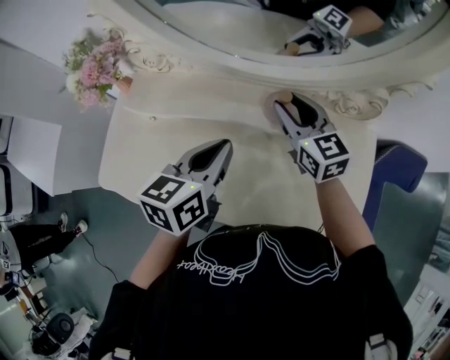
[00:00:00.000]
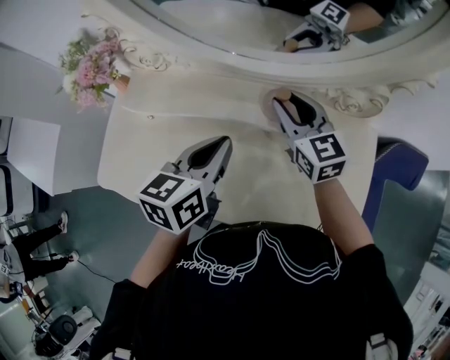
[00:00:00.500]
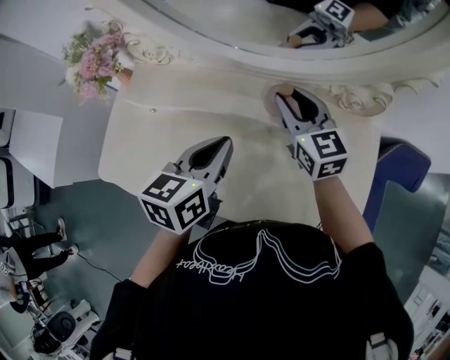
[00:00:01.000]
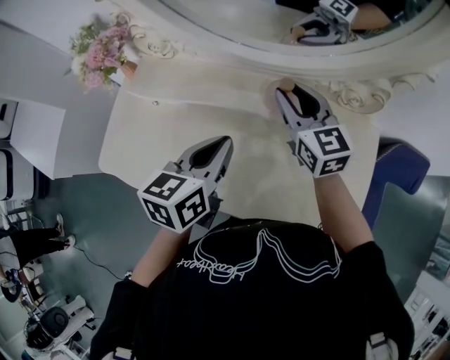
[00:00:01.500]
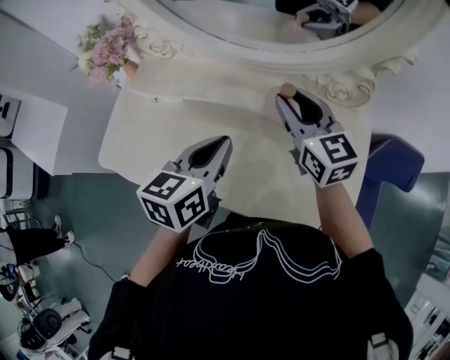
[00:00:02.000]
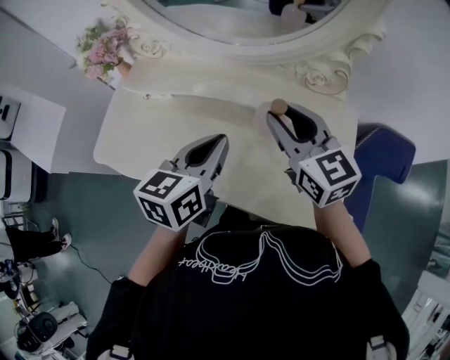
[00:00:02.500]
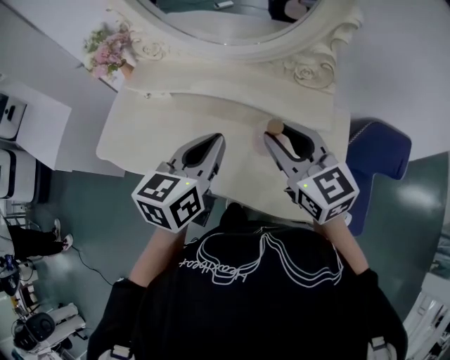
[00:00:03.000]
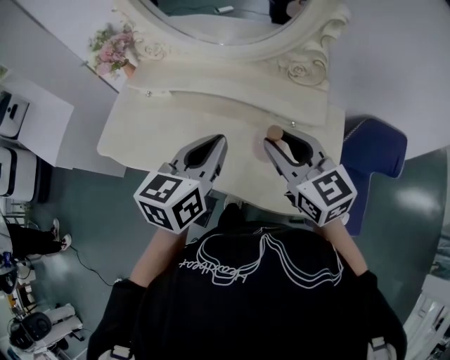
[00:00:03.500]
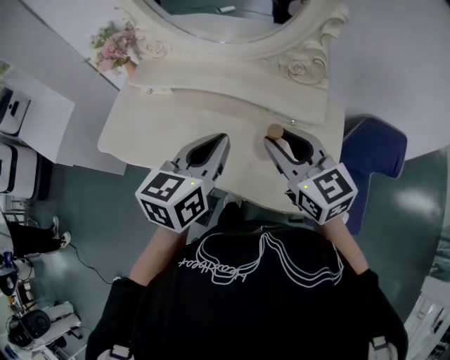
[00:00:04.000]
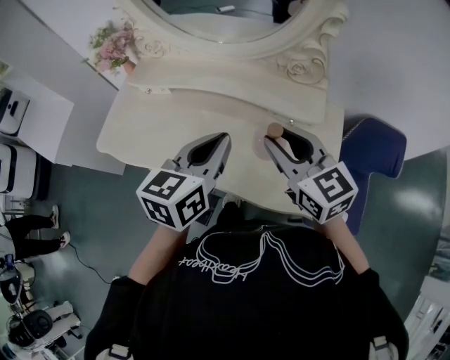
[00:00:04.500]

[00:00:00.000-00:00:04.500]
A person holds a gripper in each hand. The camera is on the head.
00:00:00.000 to 00:00:02.000: The left gripper shifts about 5 cm backward. The right gripper is displaced backward and upward by roughly 10 cm.
00:00:02.000 to 00:00:04.500: The right gripper heads backward, covering some 20 cm; the left gripper shifts about 15 cm backward, to the right and upward.

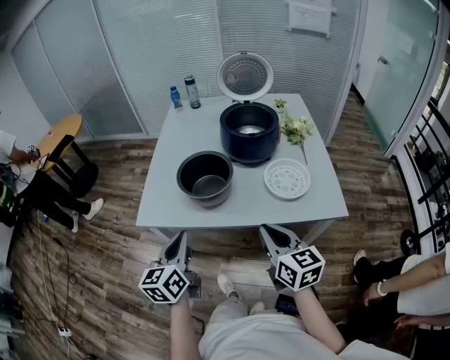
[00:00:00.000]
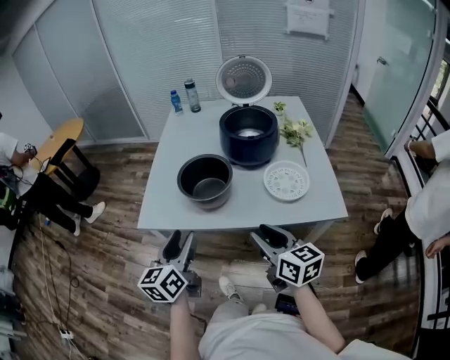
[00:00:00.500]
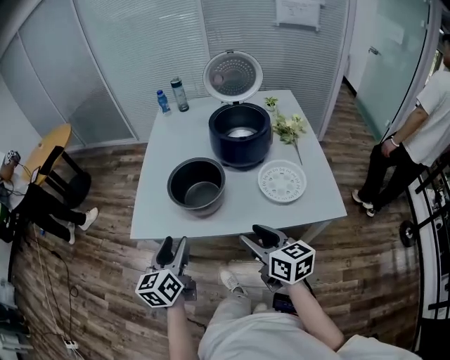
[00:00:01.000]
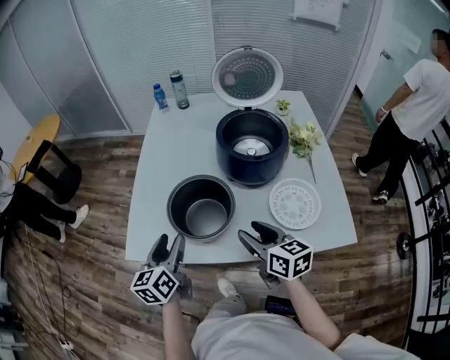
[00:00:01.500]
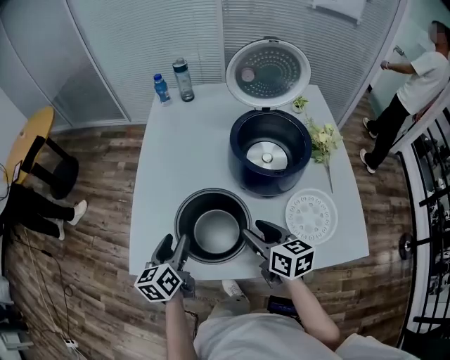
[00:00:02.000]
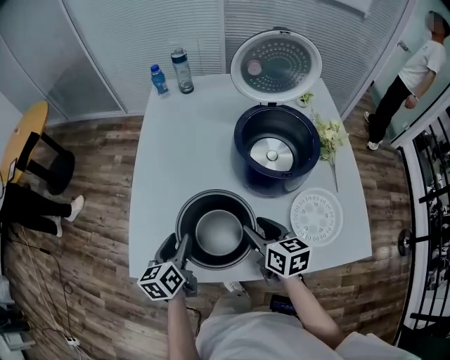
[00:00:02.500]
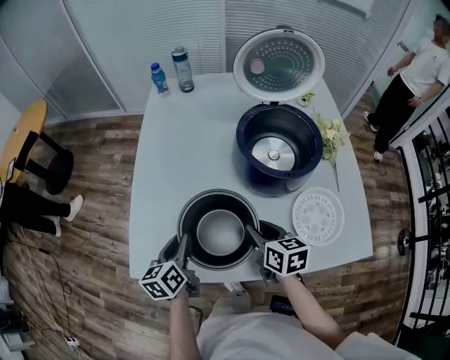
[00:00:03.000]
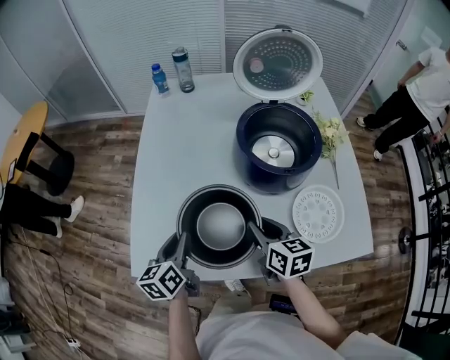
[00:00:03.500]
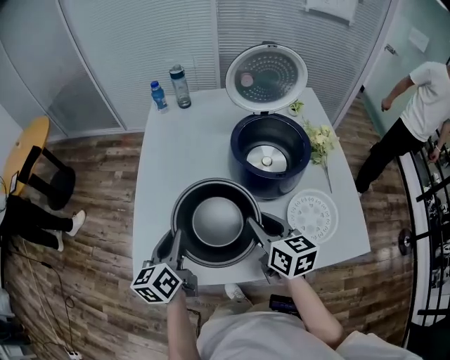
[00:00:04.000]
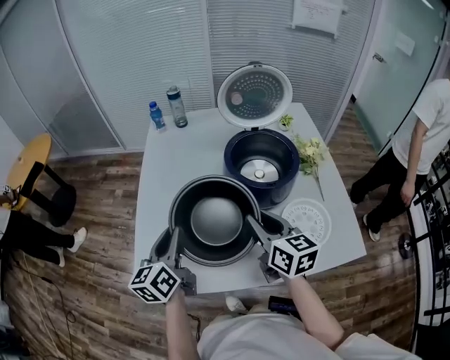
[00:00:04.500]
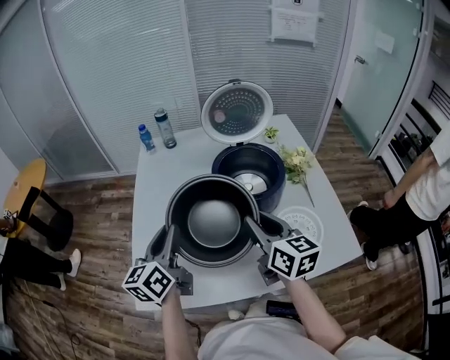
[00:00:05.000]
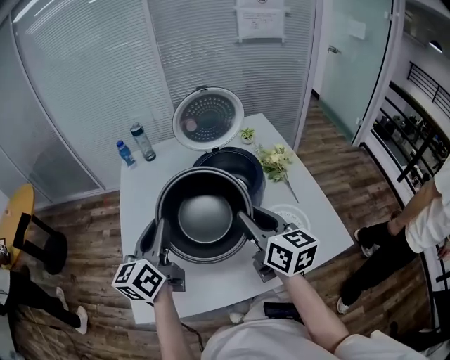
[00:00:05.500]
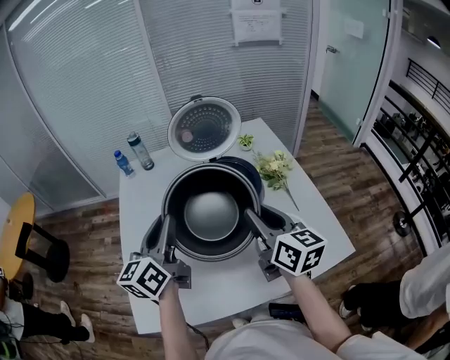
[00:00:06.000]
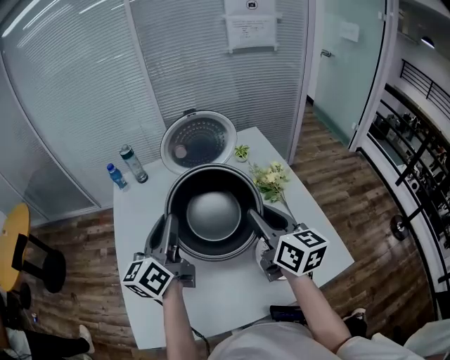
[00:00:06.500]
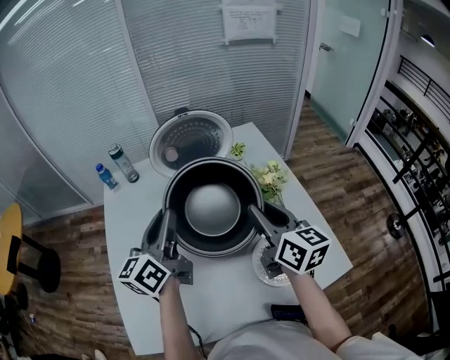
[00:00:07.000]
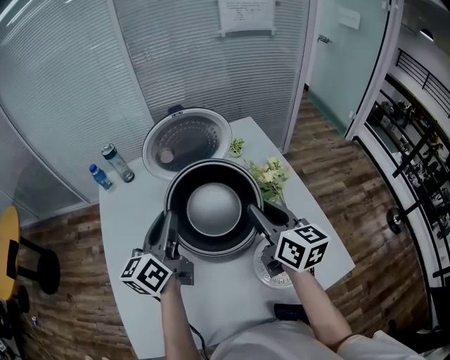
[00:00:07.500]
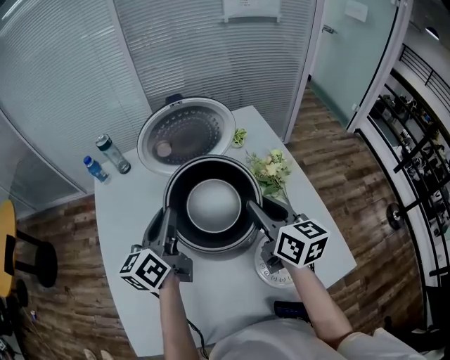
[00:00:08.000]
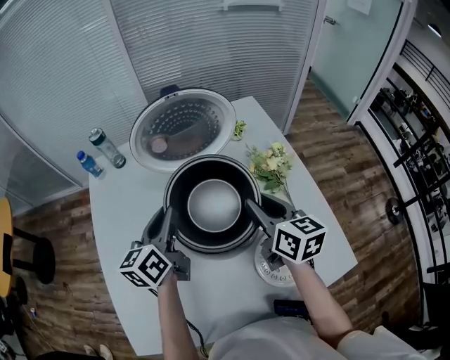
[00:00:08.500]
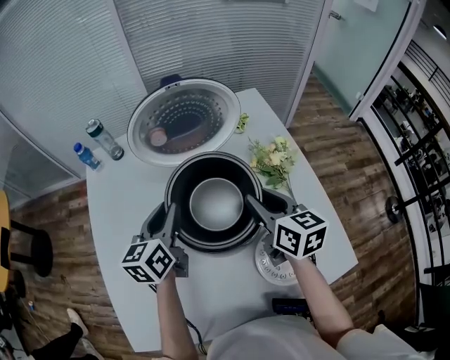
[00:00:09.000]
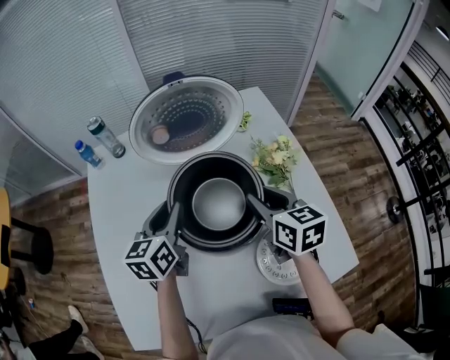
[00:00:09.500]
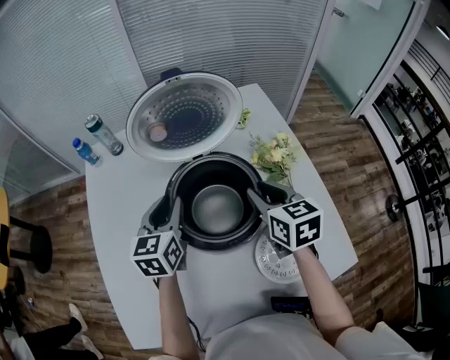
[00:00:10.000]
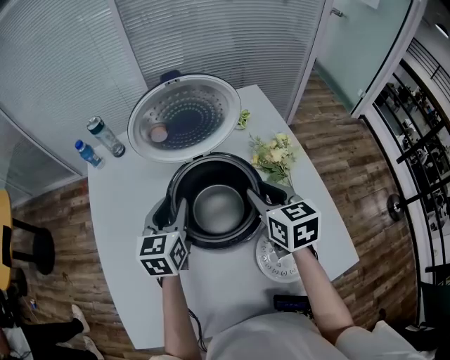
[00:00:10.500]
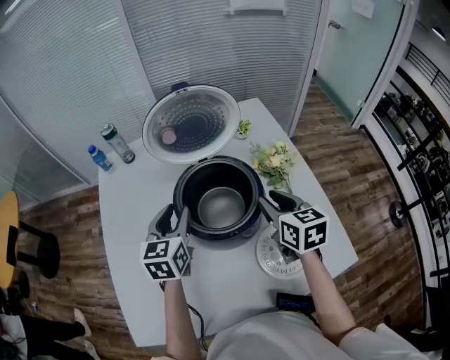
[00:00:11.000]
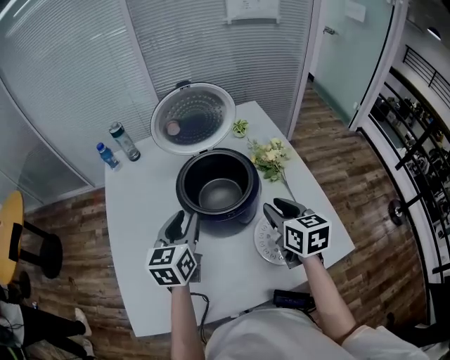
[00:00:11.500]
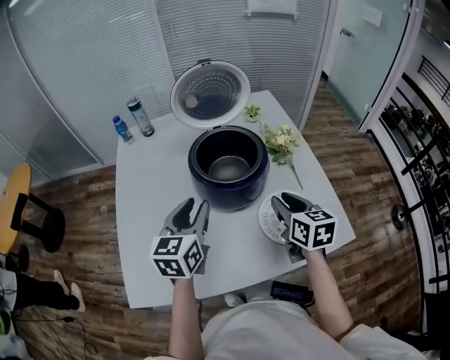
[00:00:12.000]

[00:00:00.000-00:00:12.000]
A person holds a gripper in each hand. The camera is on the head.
00:00:00.000 to 00:00:02.000: Both grippers move forward, approximately 30 cm. The right gripper opens its fingers. Meanwhile the left gripper opens its fingers.
00:00:02.000 to 00:00:04.000: The right gripper changes place by about 5 cm, and closes up, while the left gripper heads upward, covering some 5 cm, and closes up.
00:00:04.000 to 00:00:06.000: The left gripper is displaced upward, to the right and forward by roughly 25 cm, and turns by about 30 degrees, while the right gripper goes roughly 20 cm upward and to the right, and turns by about 20 degrees.
00:00:06.000 to 00:00:08.000: The right gripper shifts approximately 15 cm forward; the left gripper heads forward and downward, covering roughly 20 cm.
00:00:08.000 to 00:00:10.000: The two grippers go about 5 cm downward. The left gripper changes its angle by roughly 30 degrees, while the right gripper changes its angle by roughly 20 degrees.
00:00:10.000 to 00:00:12.000: The grippers both shift backward by roughly 20 cm.

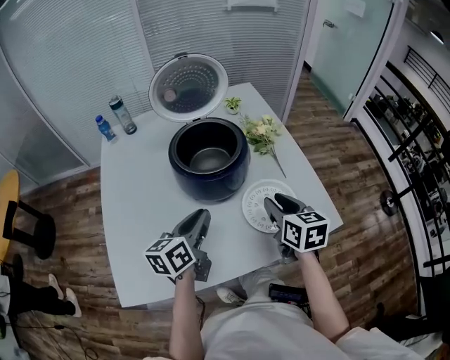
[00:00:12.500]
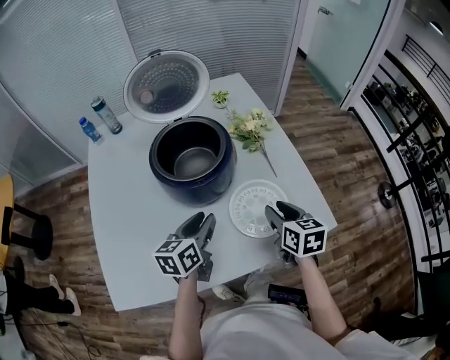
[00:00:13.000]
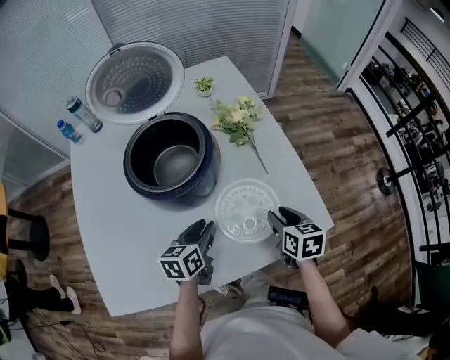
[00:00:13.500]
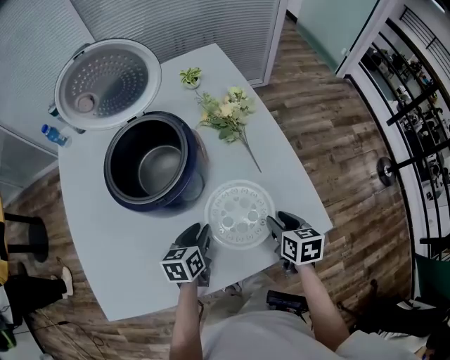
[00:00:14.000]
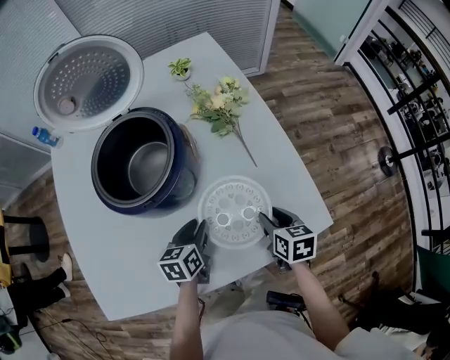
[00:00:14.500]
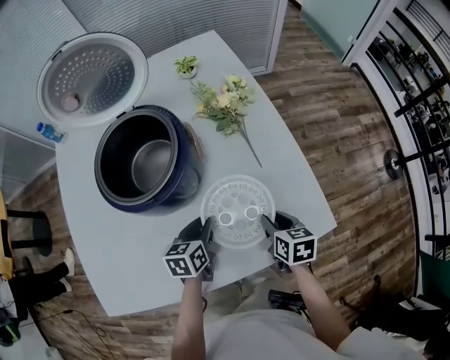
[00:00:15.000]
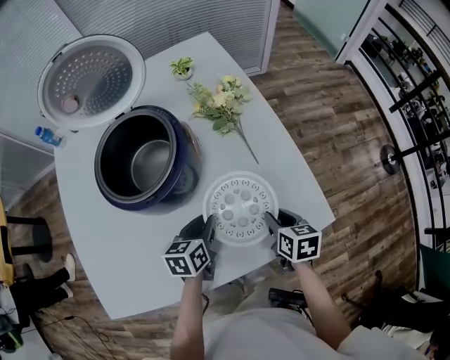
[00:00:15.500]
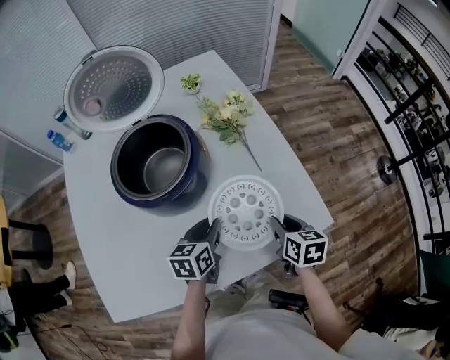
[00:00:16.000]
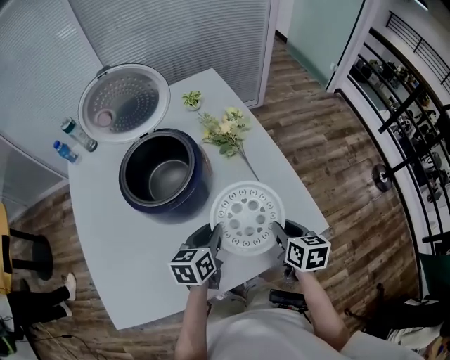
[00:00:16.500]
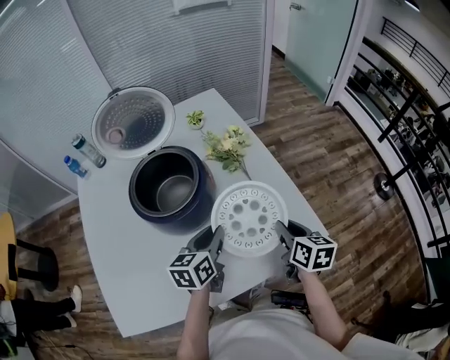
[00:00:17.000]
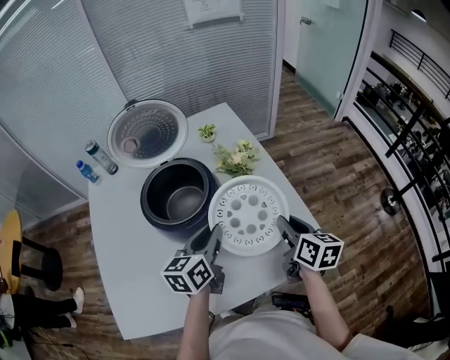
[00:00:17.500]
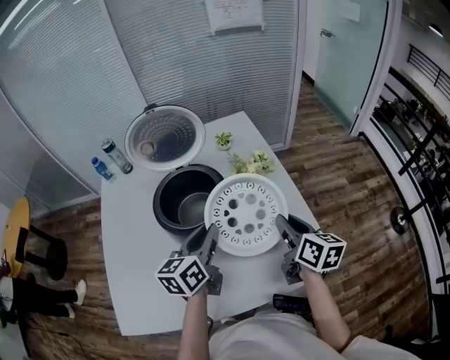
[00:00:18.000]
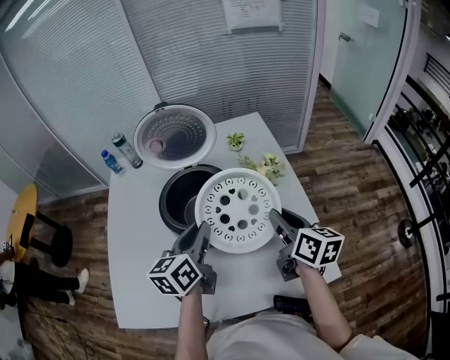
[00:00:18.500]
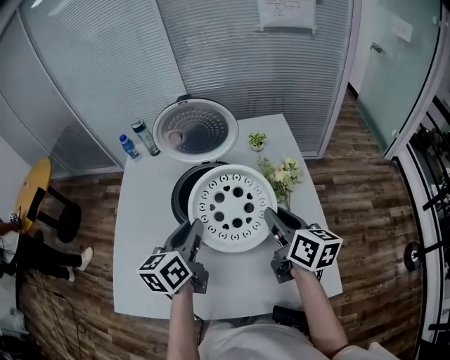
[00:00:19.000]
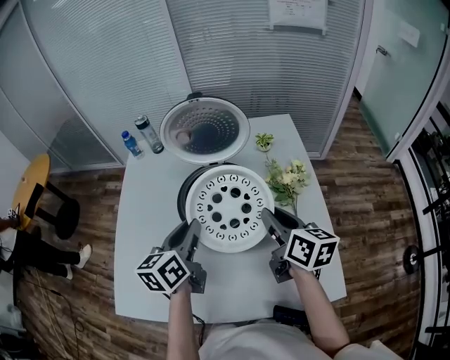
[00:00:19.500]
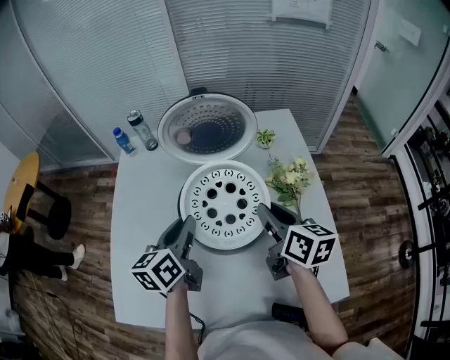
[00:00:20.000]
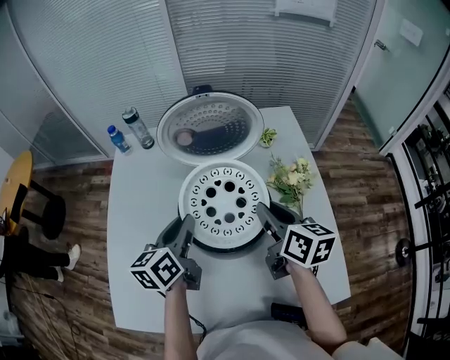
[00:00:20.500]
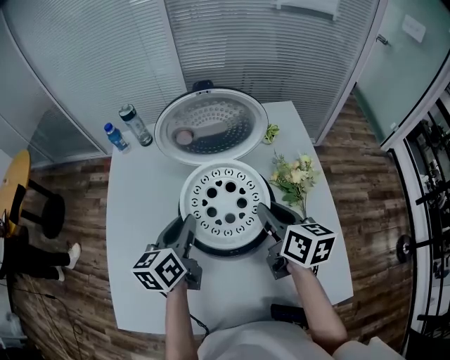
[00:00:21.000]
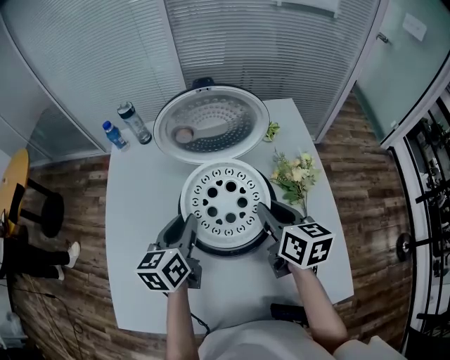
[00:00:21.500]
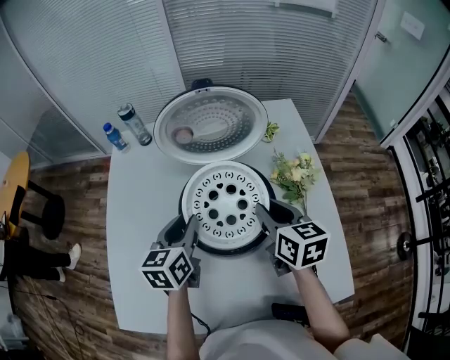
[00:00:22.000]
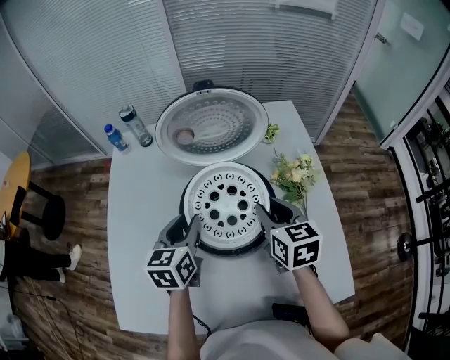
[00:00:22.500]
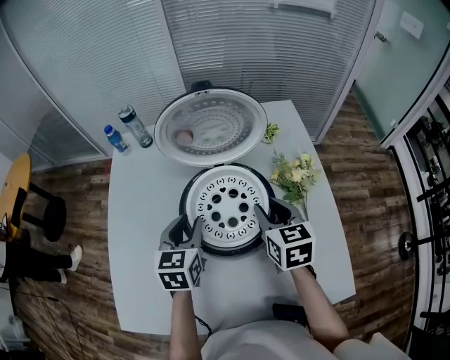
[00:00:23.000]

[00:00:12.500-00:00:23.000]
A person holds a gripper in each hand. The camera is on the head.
00:00:12.500 to 00:00:14.500: The two grippers go approximately 25 cm downward and to the right. The right gripper turns by approximately 20 degrees. Meanwhile the left gripper swivels about 30 degrees.
00:00:14.500 to 00:00:16.500: The two grippers go about 10 cm upward.
00:00:16.500 to 00:00:19.000: The left gripper is displaced upward by roughly 20 cm, and turns by roughly 30 degrees, while the right gripper moves about 25 cm, and changes its angle by roughly 30 degrees.
00:00:19.000 to 00:00:21.000: The right gripper is displaced forward and to the left by about 10 cm. The left gripper shifts approximately 15 cm forward, to the left and downward.
00:00:21.000 to 00:00:23.000: The right gripper rotates roughly 30 degrees. The left gripper turns by some 30 degrees.
